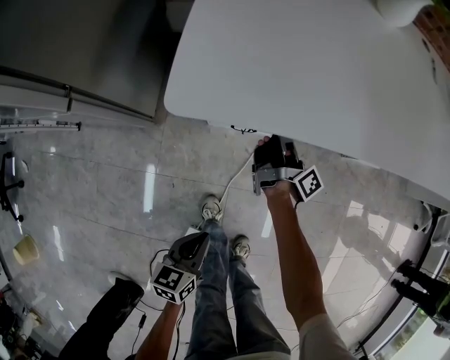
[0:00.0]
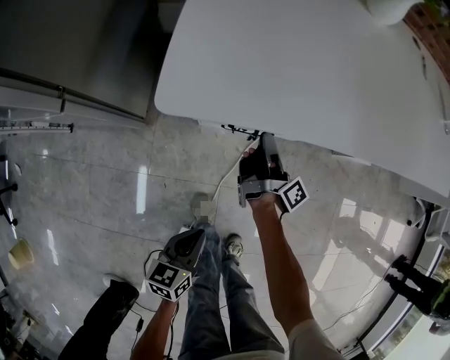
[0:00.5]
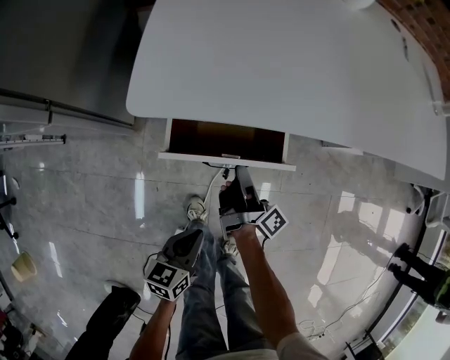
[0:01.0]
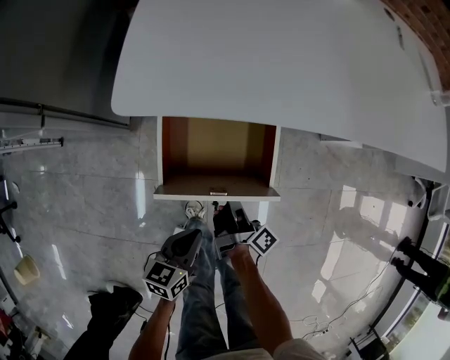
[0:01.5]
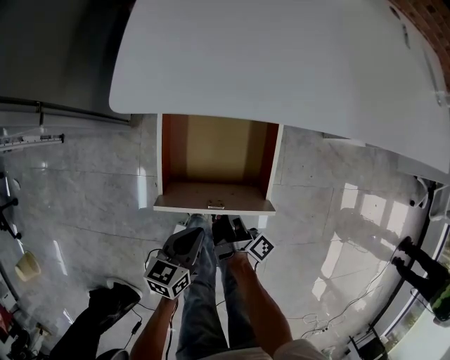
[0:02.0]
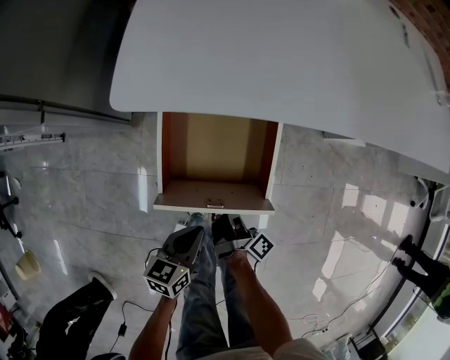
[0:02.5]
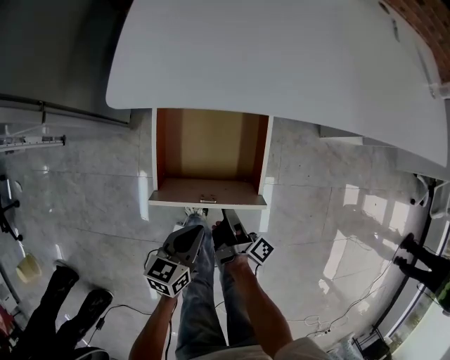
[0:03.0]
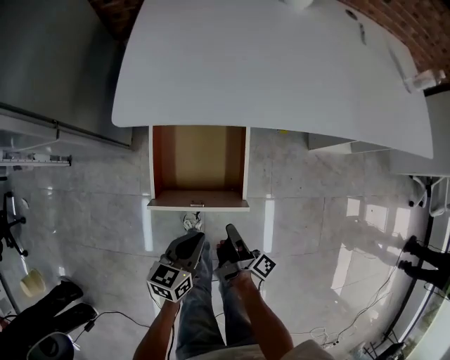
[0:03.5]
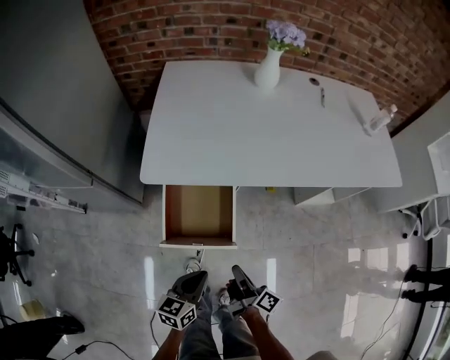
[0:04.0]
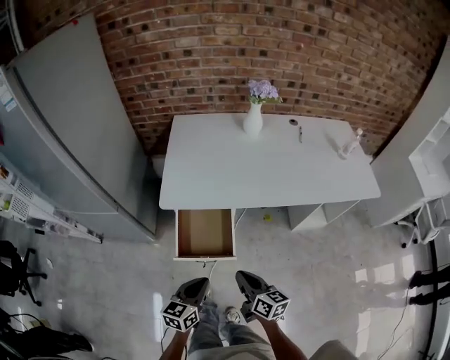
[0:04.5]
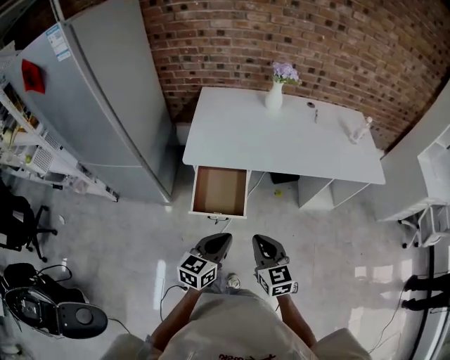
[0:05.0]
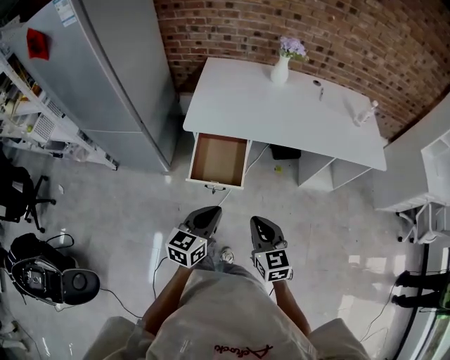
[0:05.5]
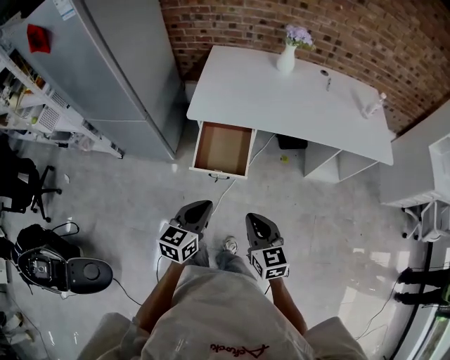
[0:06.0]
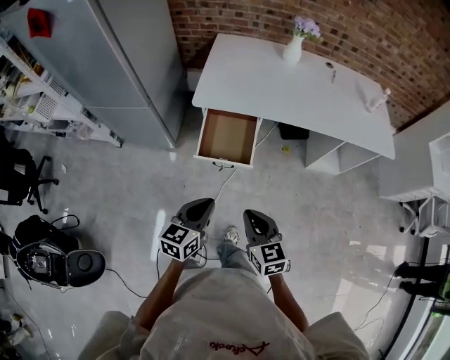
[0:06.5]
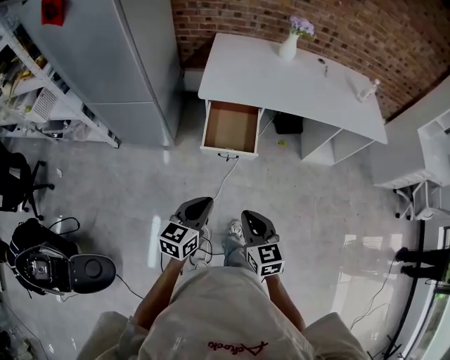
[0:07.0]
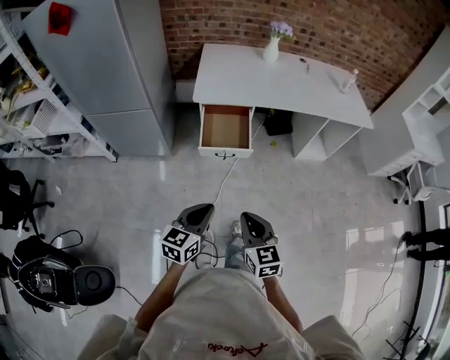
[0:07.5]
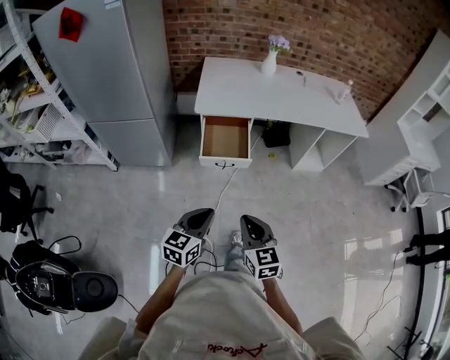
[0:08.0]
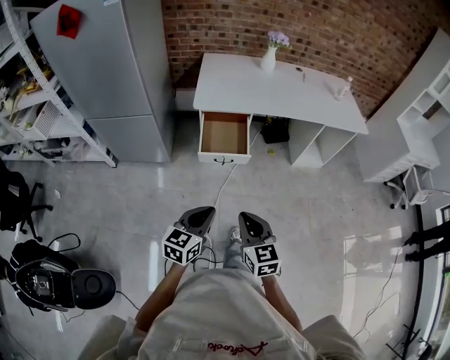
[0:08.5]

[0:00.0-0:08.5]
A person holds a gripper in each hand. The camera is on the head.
0:00.0 to 0:02.0: The right gripper goes approximately 25 cm backward. Meanwhile the left gripper moves to the right, about 5 cm.
0:02.0 to 0:04.0: The grippers both shift upward and to the right by about 20 cm. The right gripper opens, then closes again.
0:04.0 to 0:06.5: Both grippers move upward and backward, some 30 cm. The right gripper rolls counterclockwise, seen from behind, by about 80 degrees.
0:06.5 to 0:08.5: The left gripper is displaced backward by some 15 cm. The right gripper shifts roughly 20 cm backward and to the left.

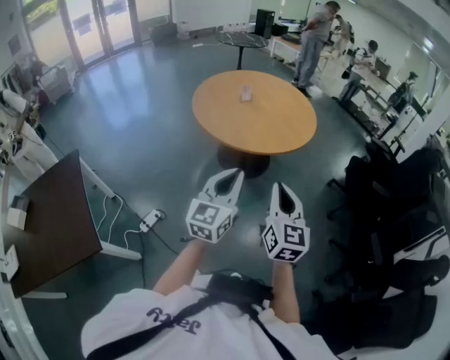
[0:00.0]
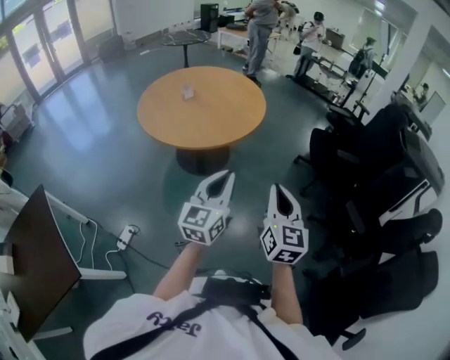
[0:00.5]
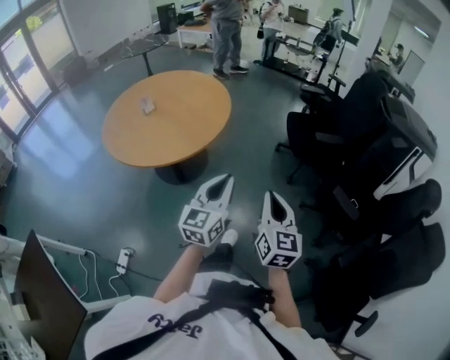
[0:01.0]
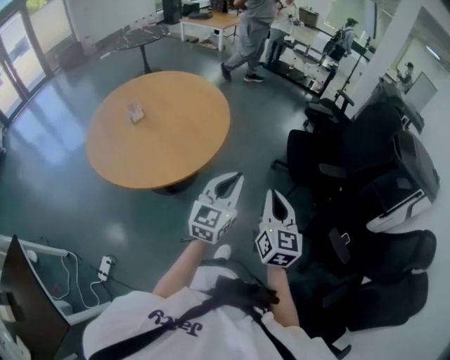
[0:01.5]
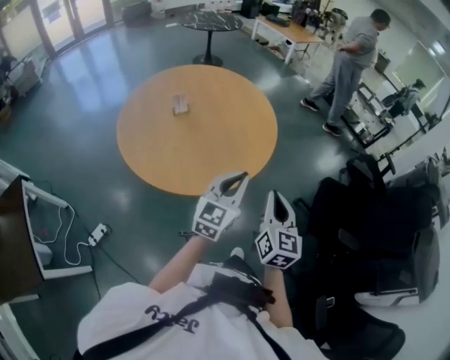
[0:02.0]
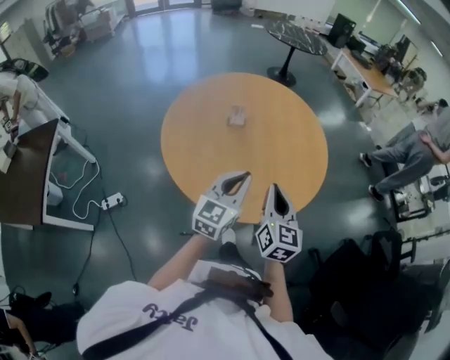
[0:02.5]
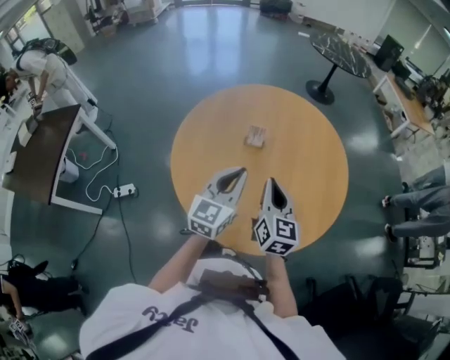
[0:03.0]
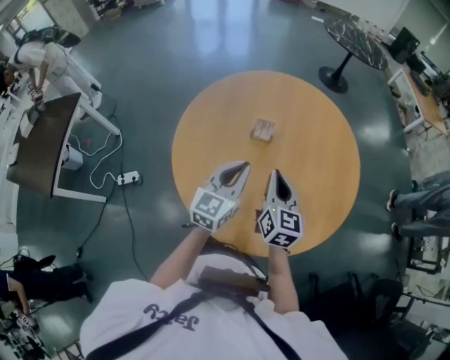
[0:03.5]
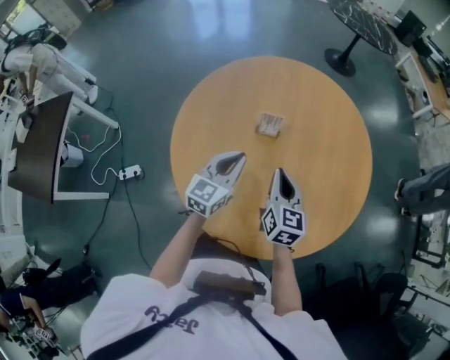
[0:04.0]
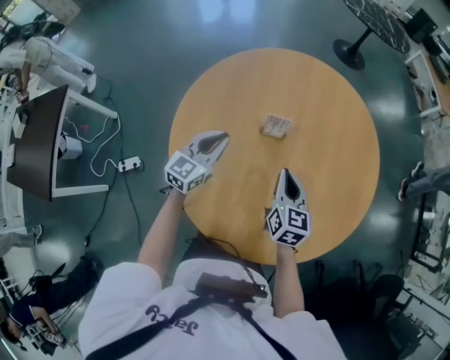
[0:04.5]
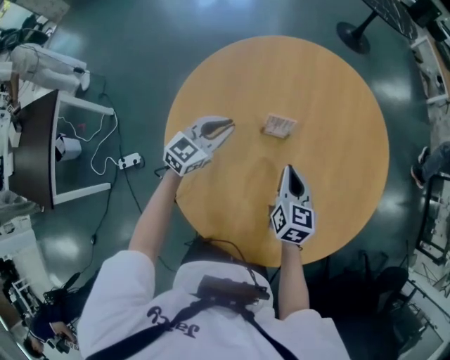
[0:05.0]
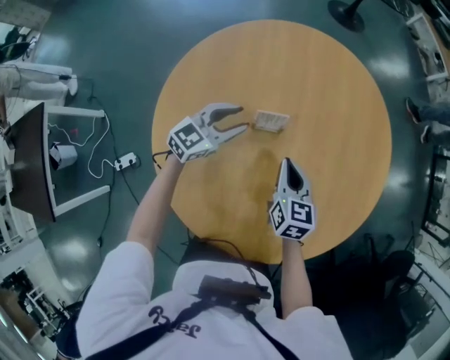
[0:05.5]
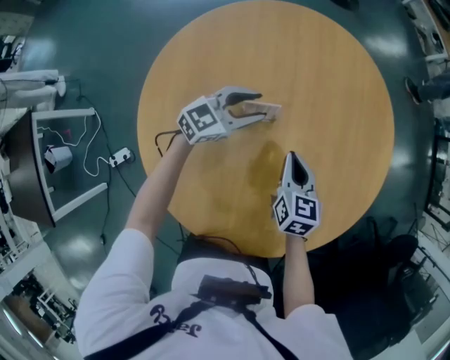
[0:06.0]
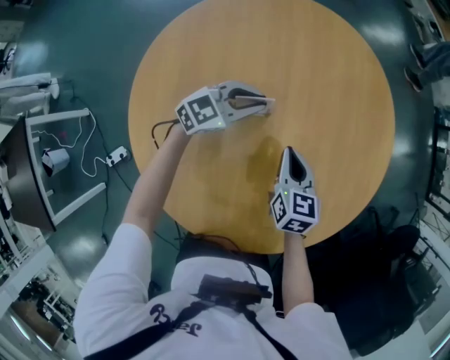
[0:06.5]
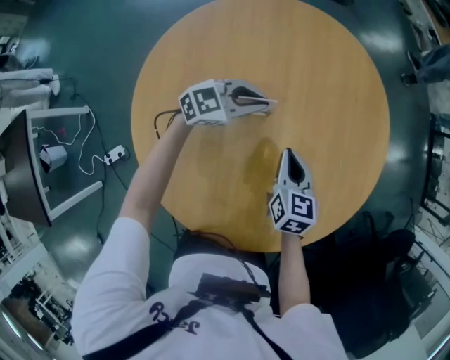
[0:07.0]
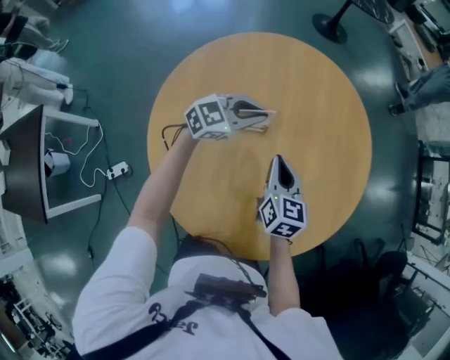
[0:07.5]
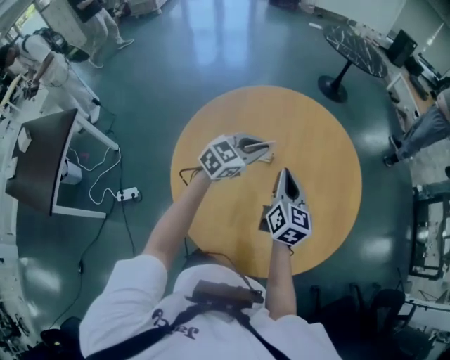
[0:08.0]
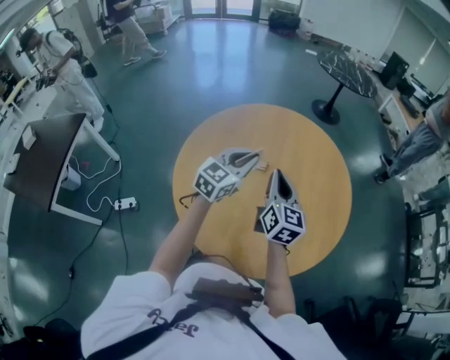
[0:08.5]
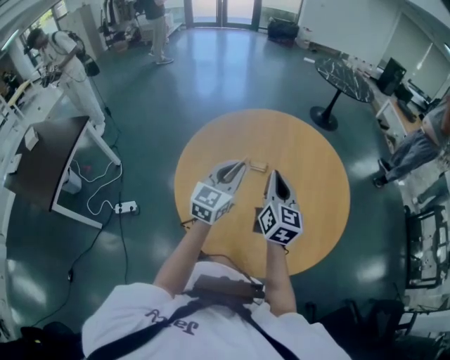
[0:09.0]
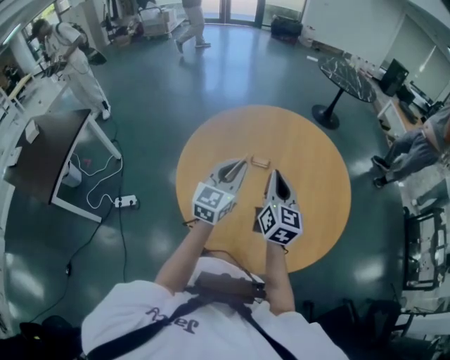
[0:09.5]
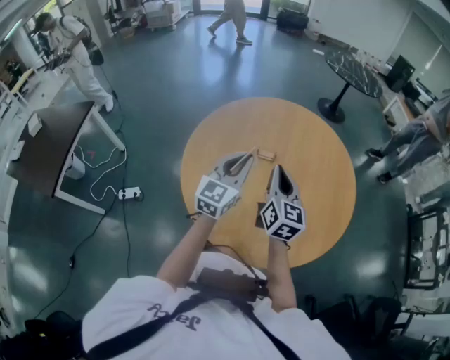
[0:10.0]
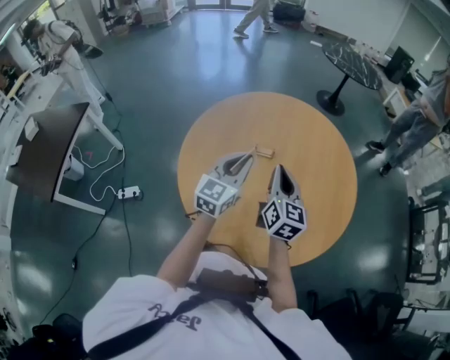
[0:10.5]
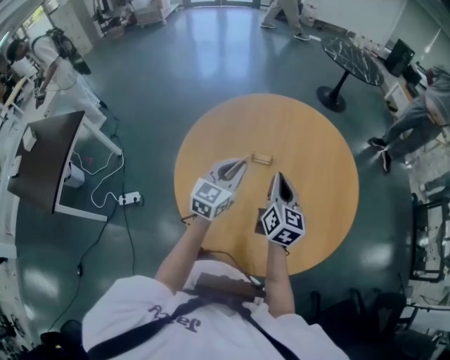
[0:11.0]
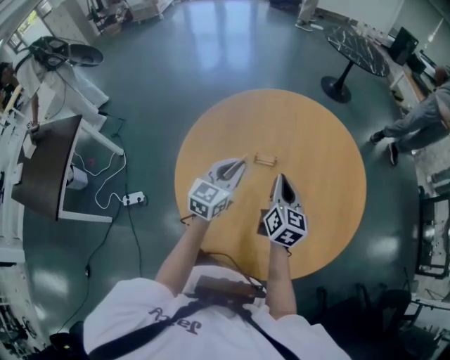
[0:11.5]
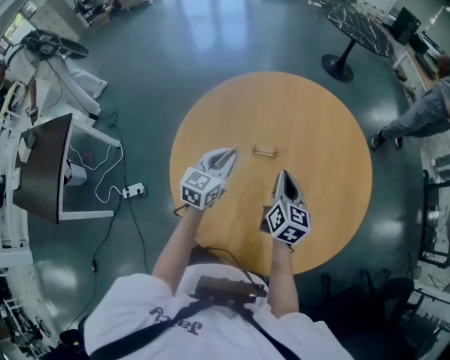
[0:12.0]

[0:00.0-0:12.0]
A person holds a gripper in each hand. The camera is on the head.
0:00.0 to 0:02.0: Both grippers are carried forward, roughly 40 cm.
0:02.0 to 0:04.0: The right gripper moves some 40 cm, and swivels some 40 degrees; the left gripper changes place by about 40 cm, and rotates approximately 40 degrees.
0:04.0 to 0:06.0: The right gripper is displaced downward and forward by roughly 15 cm, while the left gripper moves forward and downward, approximately 20 cm, rotates some 40 degrees, and opens.
0:06.0 to 0:08.0: The right gripper goes roughly 15 cm upward, and swivels some 20 degrees; the left gripper shifts some 15 cm upward and backward, and closes.
0:08.0 to 0:10.0: The right gripper is displaced backward by about 5 cm, while the left gripper is displaced backward and upward by roughly 15 cm, and rotates roughly 40 degrees.
0:10.0 to 0:12.0: The left gripper is displaced downward, forward and to the left by approximately 15 cm, and swivels some 20 degrees; the right gripper goes some 15 cm downward and forward.

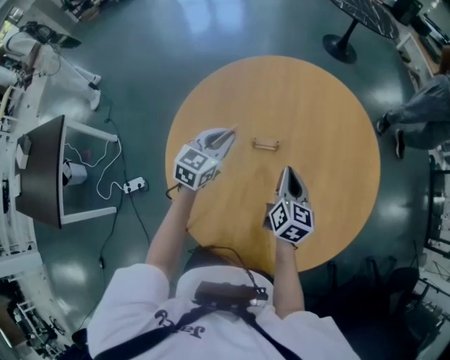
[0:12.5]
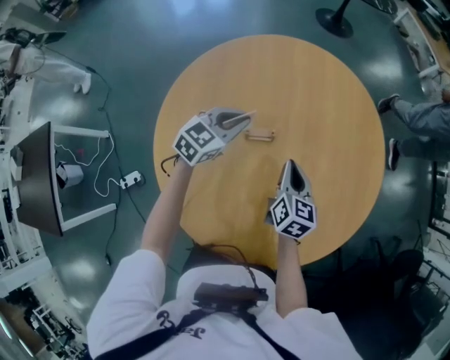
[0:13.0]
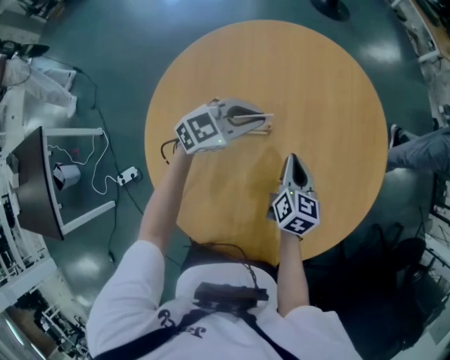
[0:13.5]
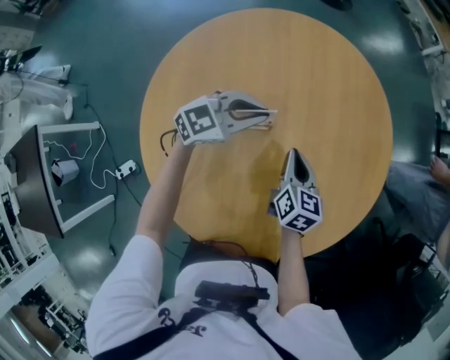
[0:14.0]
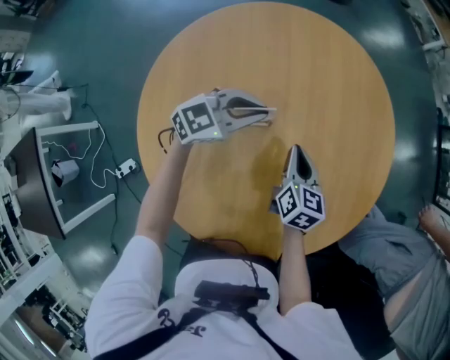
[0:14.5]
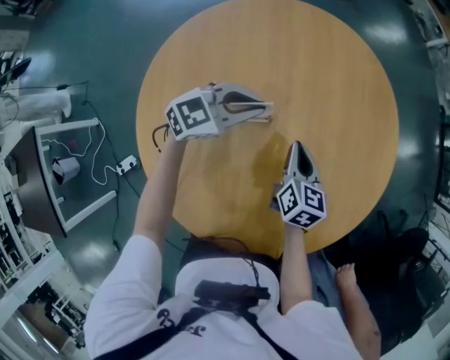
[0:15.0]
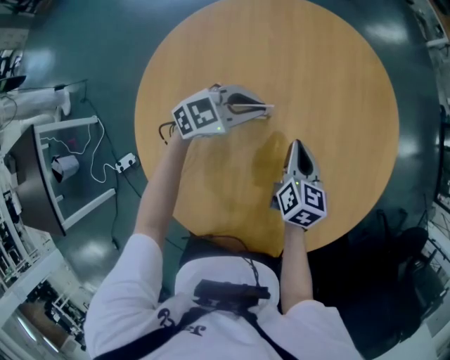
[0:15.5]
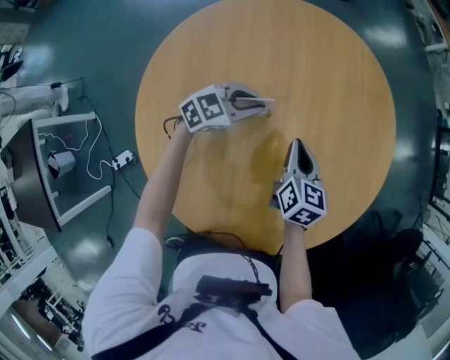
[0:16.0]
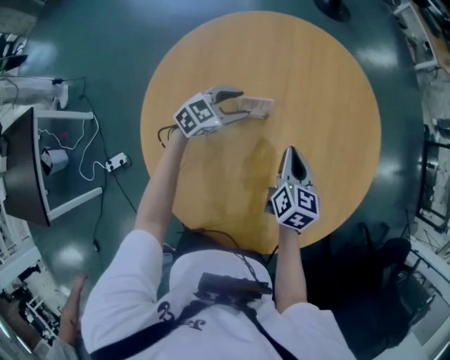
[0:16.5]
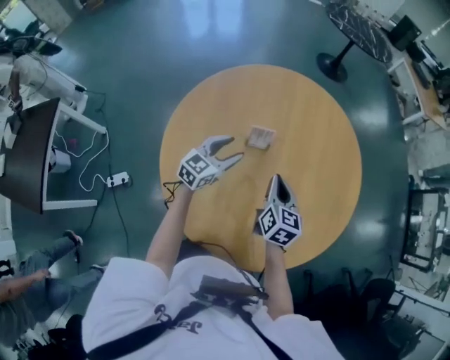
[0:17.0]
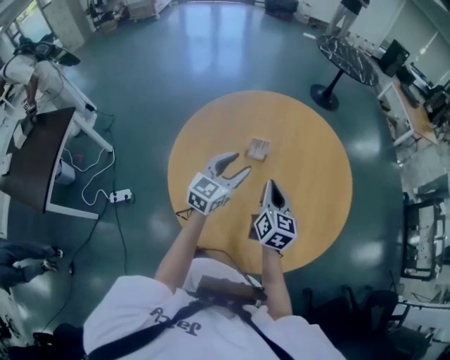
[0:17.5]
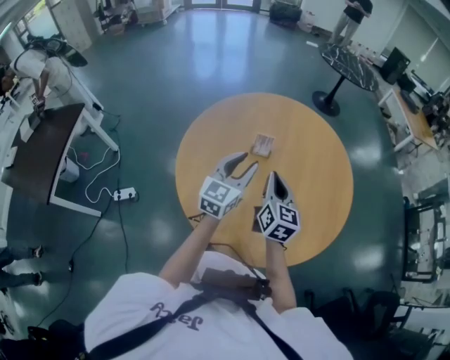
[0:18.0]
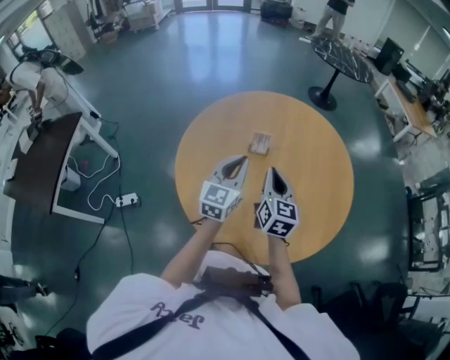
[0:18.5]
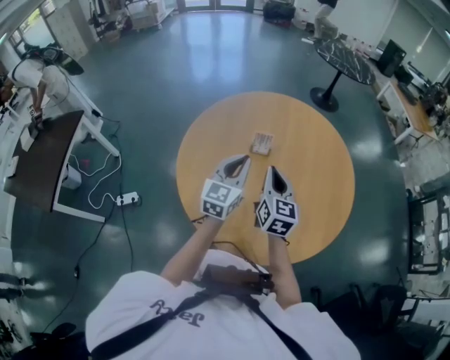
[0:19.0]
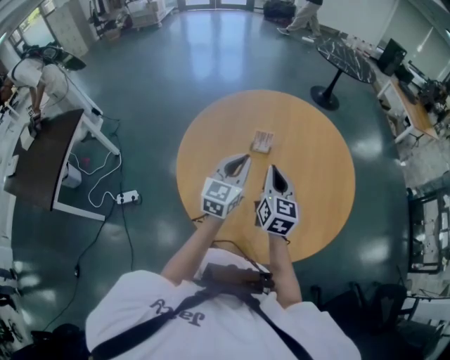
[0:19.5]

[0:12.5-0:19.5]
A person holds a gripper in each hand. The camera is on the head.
0:12.5 to 0:14.5: The right gripper is displaced downward by roughly 5 cm. The left gripper changes place by approximately 15 cm, and changes its angle by approximately 50 degrees.
0:14.5 to 0:16.0: The left gripper travels downward by about 5 cm.
0:16.0 to 0:17.5: The grippers both shift upward by approximately 15 cm. The left gripper turns by roughly 50 degrees, and opens its fingers, while the right gripper changes its angle by approximately 20 degrees.
0:17.5 to 0:19.5: The left gripper closes up.
